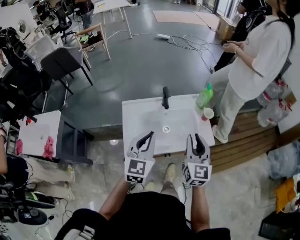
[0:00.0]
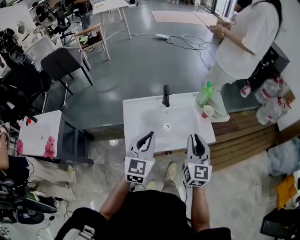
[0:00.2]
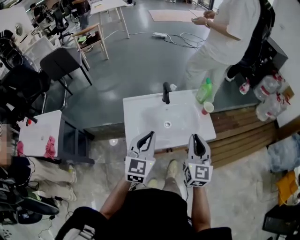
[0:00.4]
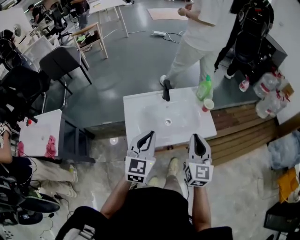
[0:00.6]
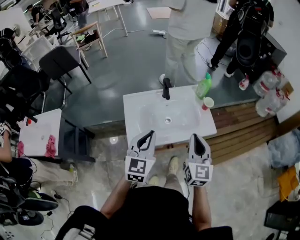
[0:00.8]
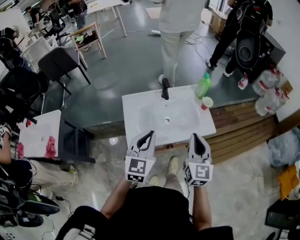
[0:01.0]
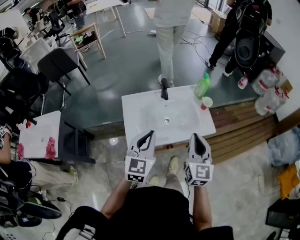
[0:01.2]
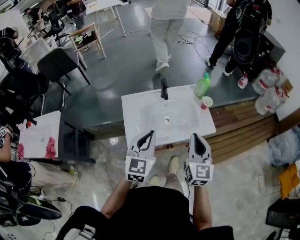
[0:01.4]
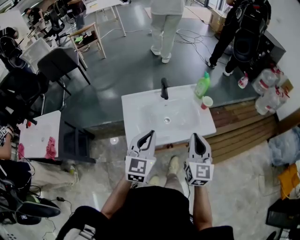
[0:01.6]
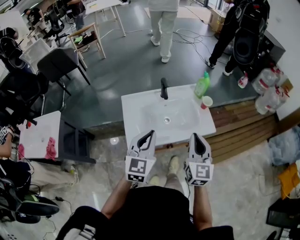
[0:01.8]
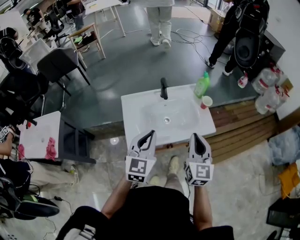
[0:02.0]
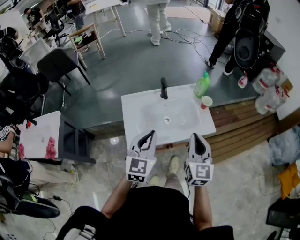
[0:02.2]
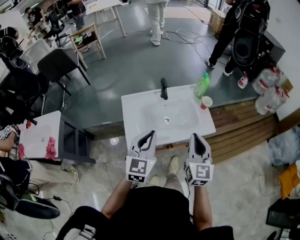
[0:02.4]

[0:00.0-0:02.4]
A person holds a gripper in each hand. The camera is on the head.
0:00.0 to 0:01.2: The right gripper is displaced backward by roughly 5 cm.
0:01.2 to 0:02.4: Both grippers stay put.

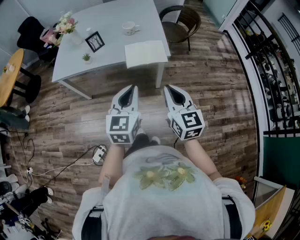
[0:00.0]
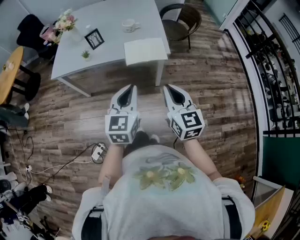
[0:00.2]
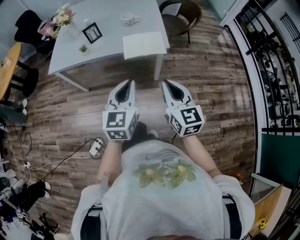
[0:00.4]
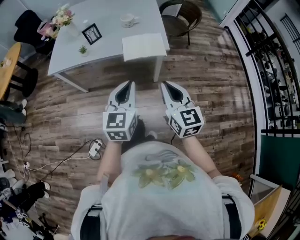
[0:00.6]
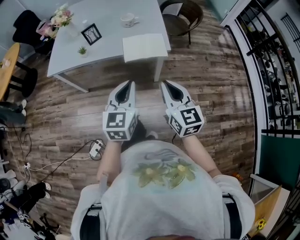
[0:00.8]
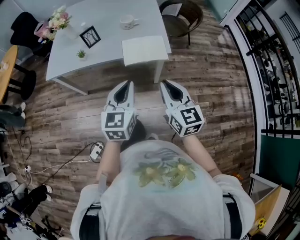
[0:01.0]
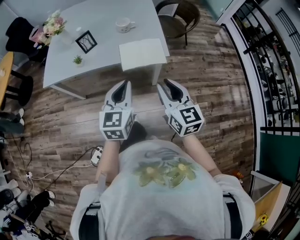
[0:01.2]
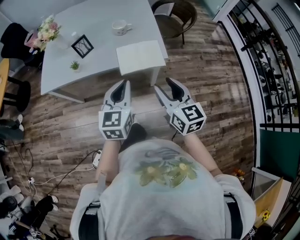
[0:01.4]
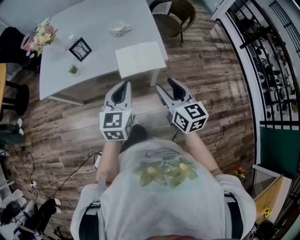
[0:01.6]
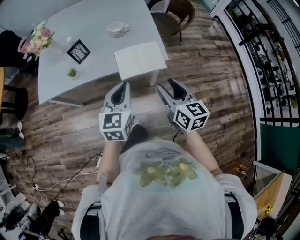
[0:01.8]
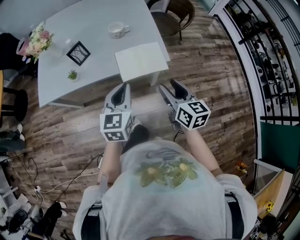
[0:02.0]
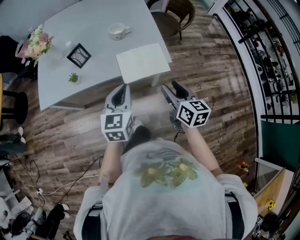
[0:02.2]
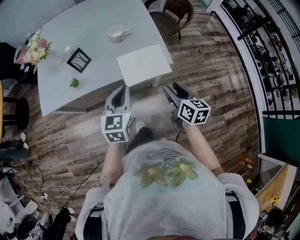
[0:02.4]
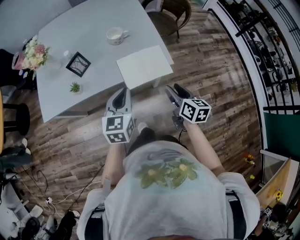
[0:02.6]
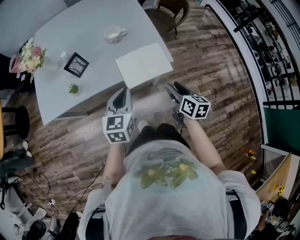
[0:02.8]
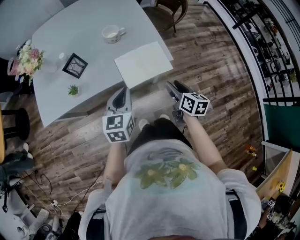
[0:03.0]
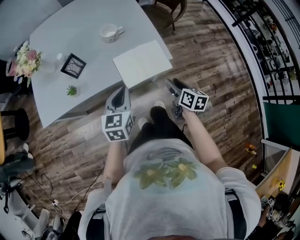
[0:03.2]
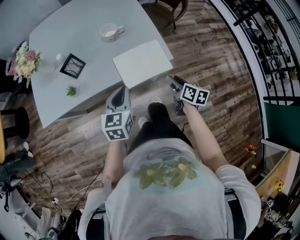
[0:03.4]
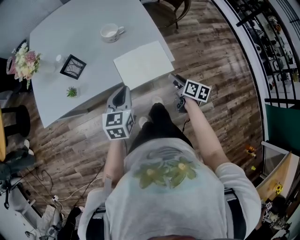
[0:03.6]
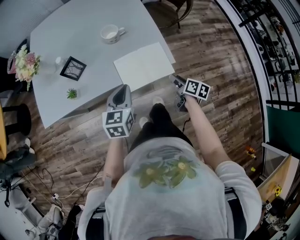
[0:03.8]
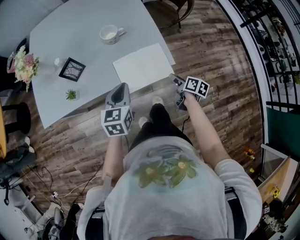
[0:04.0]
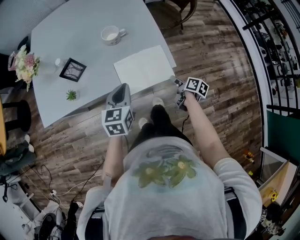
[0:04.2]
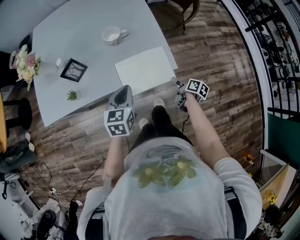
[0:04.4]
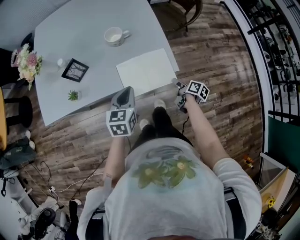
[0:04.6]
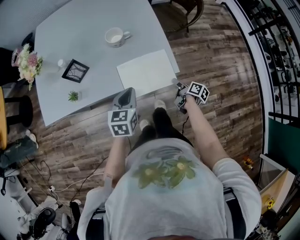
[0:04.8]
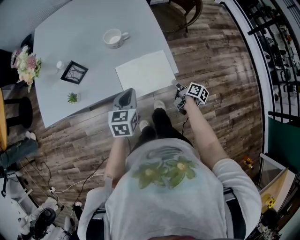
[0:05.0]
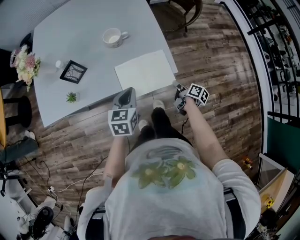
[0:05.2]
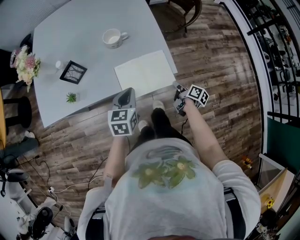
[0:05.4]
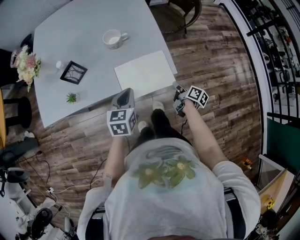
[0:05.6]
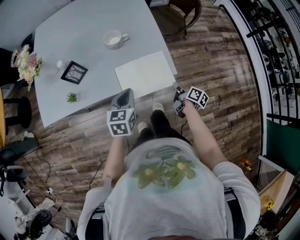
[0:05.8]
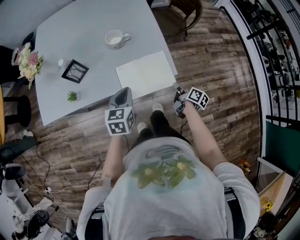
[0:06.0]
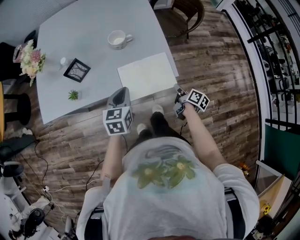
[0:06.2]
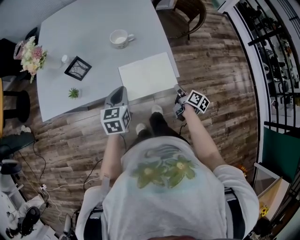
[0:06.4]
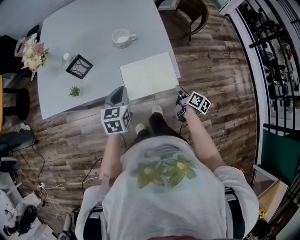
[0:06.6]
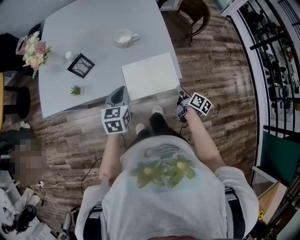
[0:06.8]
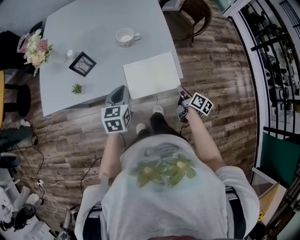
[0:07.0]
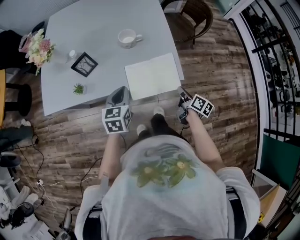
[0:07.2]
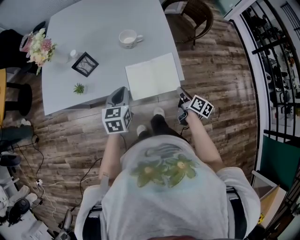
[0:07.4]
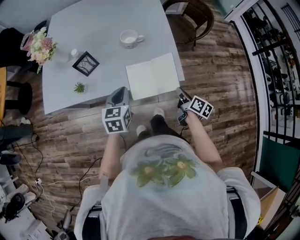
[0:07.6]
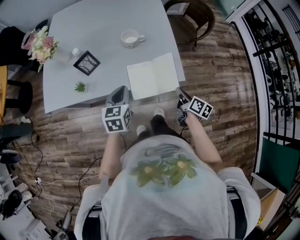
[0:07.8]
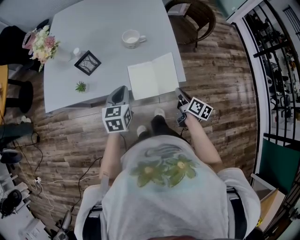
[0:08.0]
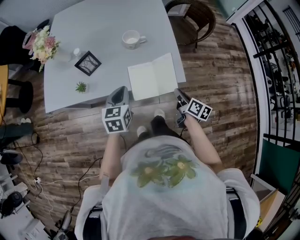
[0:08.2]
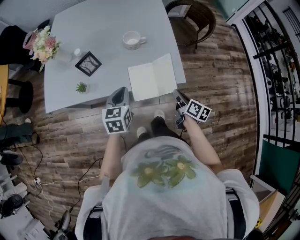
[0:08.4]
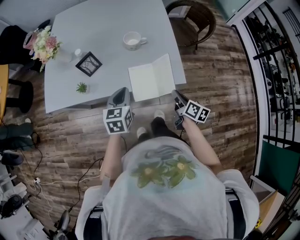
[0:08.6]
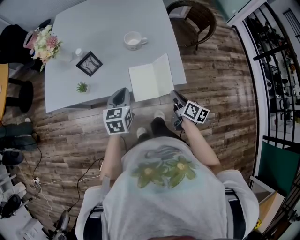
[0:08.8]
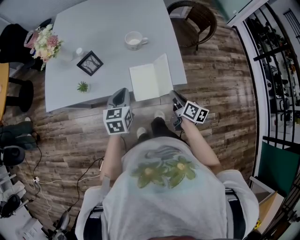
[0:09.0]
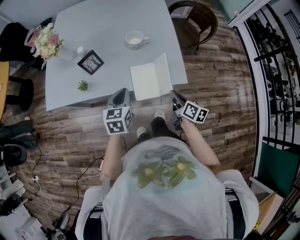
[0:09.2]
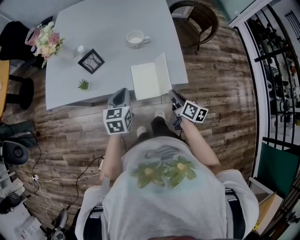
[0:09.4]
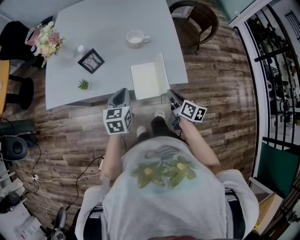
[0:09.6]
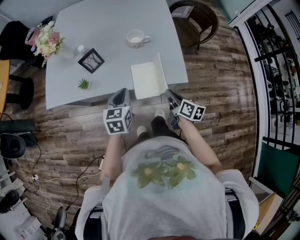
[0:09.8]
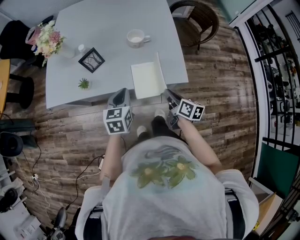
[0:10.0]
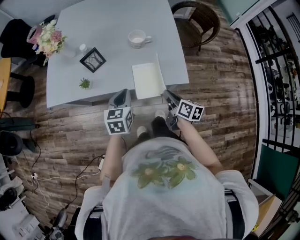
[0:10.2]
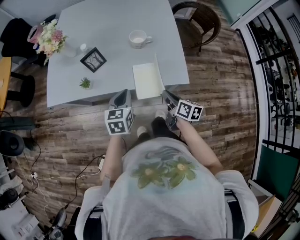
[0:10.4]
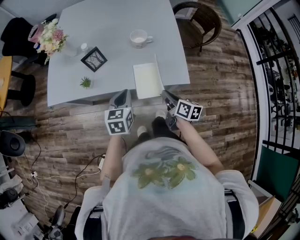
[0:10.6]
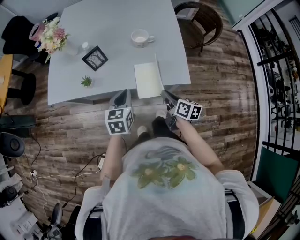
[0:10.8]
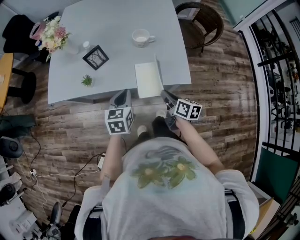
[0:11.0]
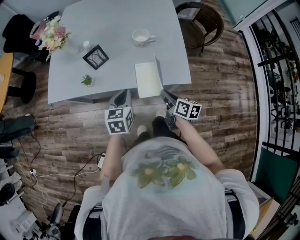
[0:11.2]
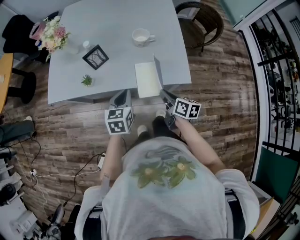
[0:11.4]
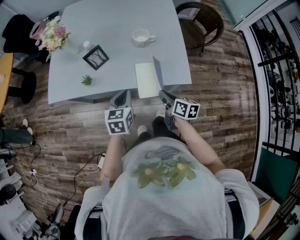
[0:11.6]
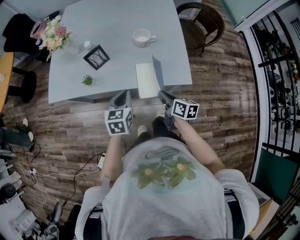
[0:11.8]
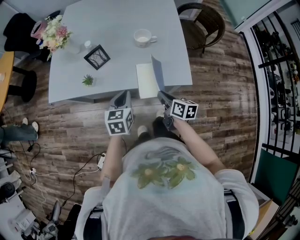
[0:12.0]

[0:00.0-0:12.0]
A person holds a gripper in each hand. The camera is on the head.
0:00.0 to 0:01.6: Both grippers travel together forward, roughly 15 cm. The right gripper opens its fingers.
0:01.6 to 0:03.0: The left gripper travels forward, downward and to the left by approximately 15 cm, while the right gripper shifts about 15 cm downward and forward, and swivels some 30 degrees.
0:03.0 to 0:04.4: The left gripper shifts some 10 cm forward. The right gripper shifts about 20 cm downward, forward and to the right, and rotates approximately 40 degrees.
0:04.4 to 0:06.0: The right gripper closes up.
0:06.0 to 0:07.6: The right gripper goes approximately 5 cm upward. Meanwhile the left gripper heads to the left, covering roughly 5 cm.
0:07.6 to 0:09.0: The right gripper moves to the left, about 5 cm.
0:09.0 to 0:10.4: The right gripper is displaced to the left by some 5 cm.
0:10.4 to 0:12.0: There are only small adjustments of the grippers.

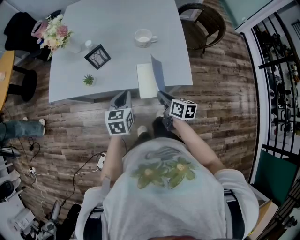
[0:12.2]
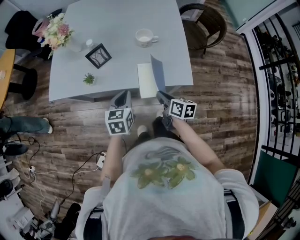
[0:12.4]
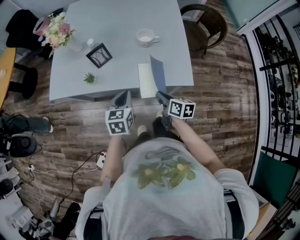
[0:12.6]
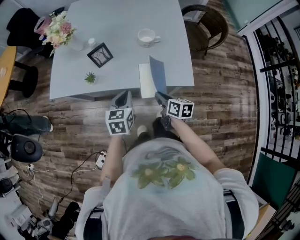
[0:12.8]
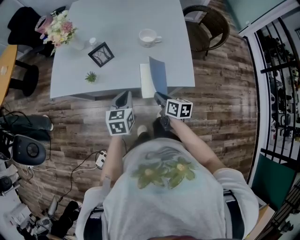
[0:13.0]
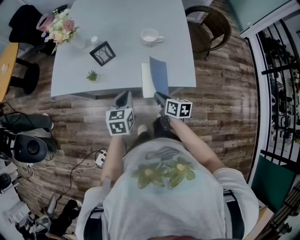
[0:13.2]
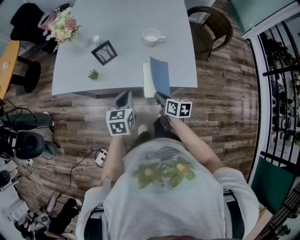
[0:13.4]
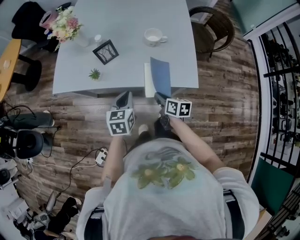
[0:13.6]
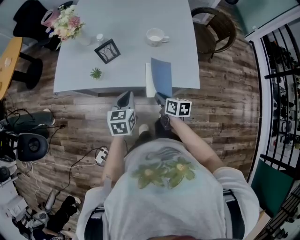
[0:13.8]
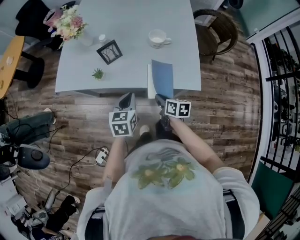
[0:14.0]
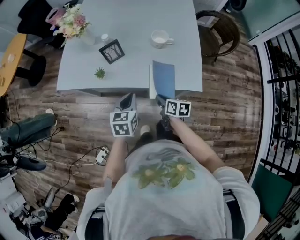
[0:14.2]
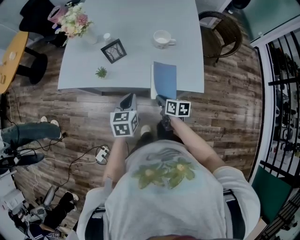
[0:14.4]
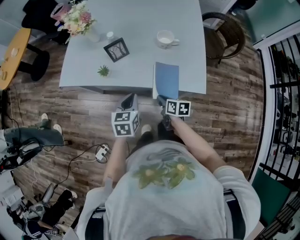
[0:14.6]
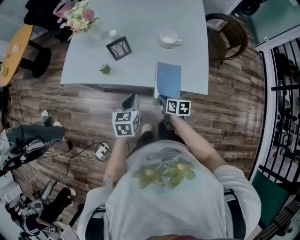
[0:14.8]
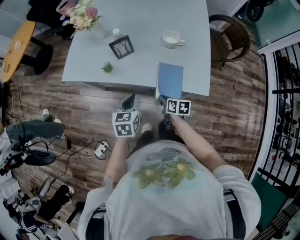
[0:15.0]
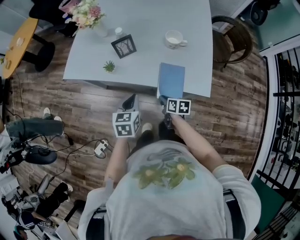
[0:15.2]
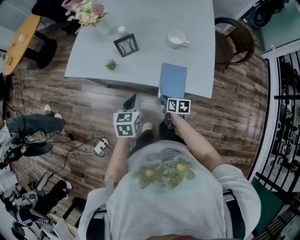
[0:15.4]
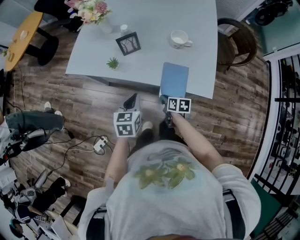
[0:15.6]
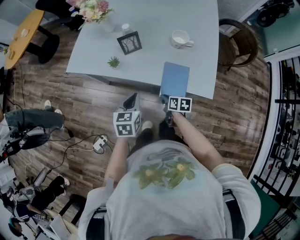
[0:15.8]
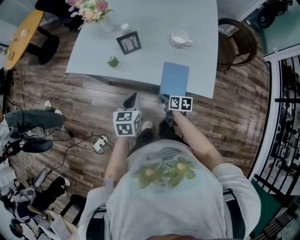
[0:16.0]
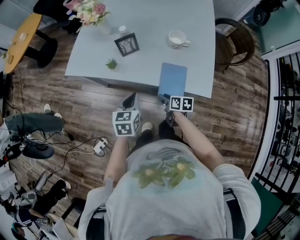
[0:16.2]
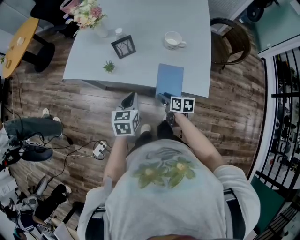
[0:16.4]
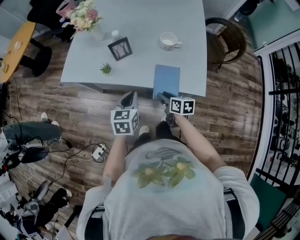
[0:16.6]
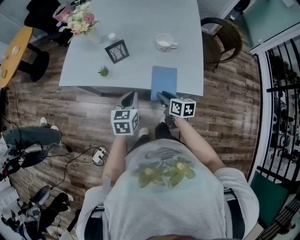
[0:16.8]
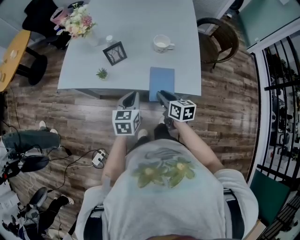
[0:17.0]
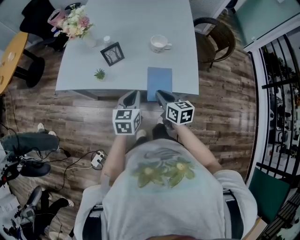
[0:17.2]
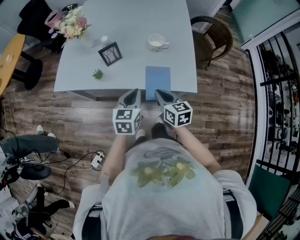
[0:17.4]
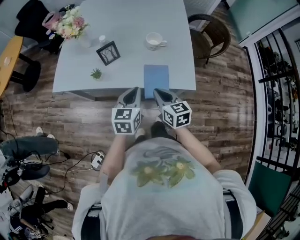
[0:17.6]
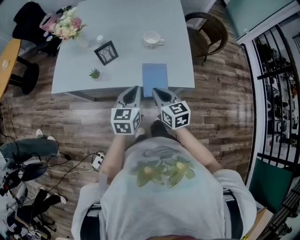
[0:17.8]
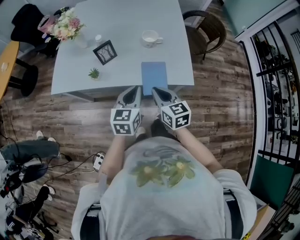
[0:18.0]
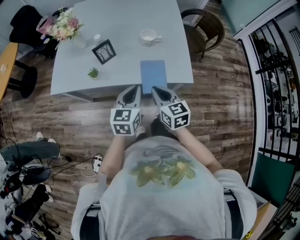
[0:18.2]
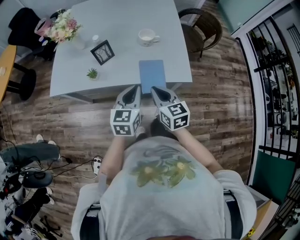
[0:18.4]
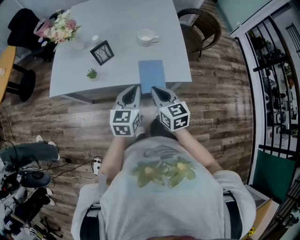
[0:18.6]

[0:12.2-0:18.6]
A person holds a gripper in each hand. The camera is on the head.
0:12.2 to 0:13.8: The right gripper ends up about 5 cm from where it was.
0:13.8 to 0:15.4: The right gripper moves downward, roughly 5 cm.
0:15.4 to 0:17.0: The right gripper goes roughly 15 cm upward, and rotates some 20 degrees, while the left gripper shifts by roughly 5 cm.
0:17.0 to 0:18.6: The left gripper heads upward, covering about 5 cm. The right gripper shifts approximately 10 cm upward and backward, and rotates roughly 20 degrees.

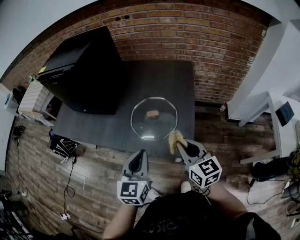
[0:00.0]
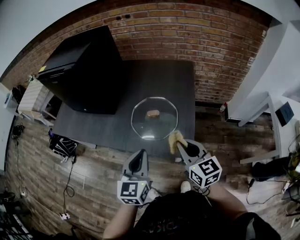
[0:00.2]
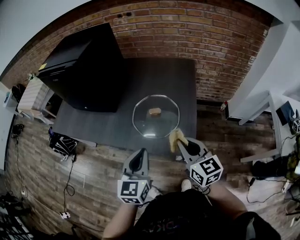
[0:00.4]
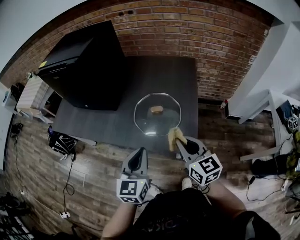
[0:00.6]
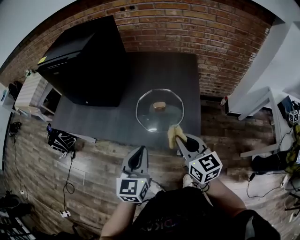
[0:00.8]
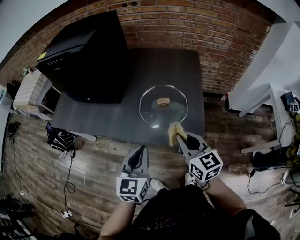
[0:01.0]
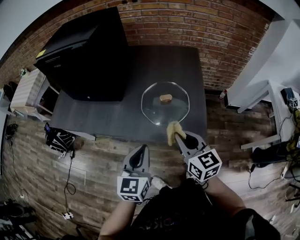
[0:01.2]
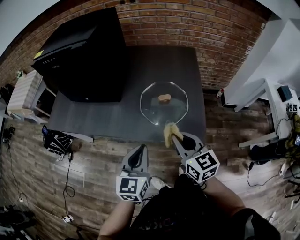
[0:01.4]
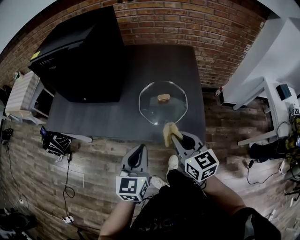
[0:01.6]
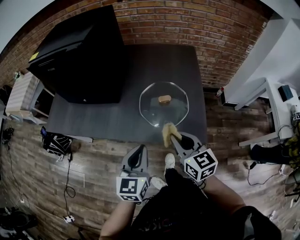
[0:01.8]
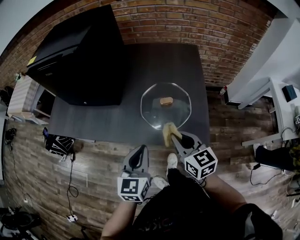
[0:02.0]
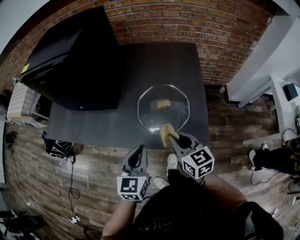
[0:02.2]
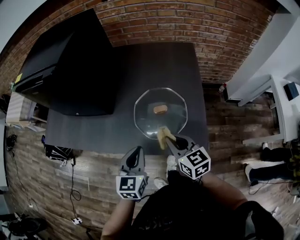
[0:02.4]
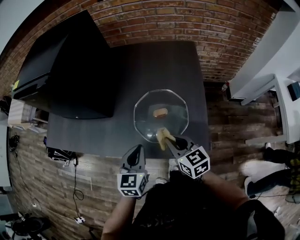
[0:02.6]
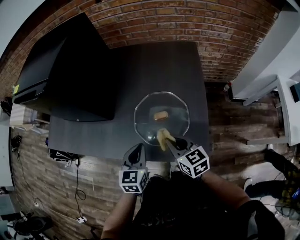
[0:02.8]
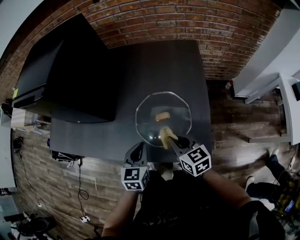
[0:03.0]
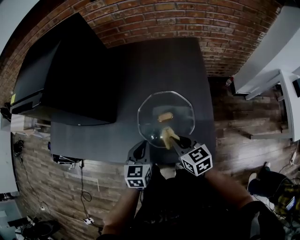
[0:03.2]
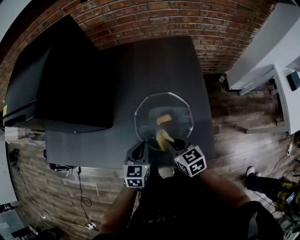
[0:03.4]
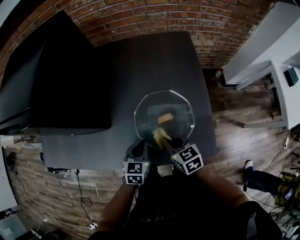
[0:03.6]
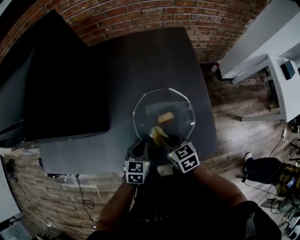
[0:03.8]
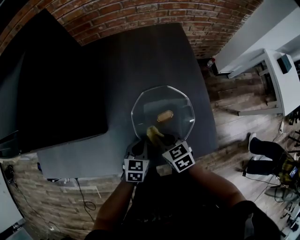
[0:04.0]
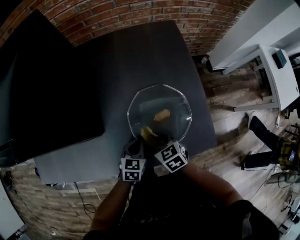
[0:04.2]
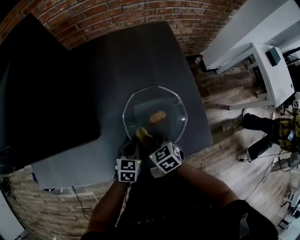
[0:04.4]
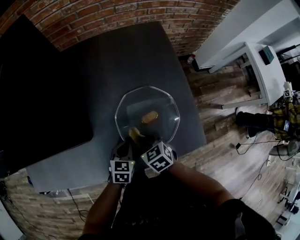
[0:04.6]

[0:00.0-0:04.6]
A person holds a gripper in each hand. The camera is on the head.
0:00.0 to 0:01.6: Both grippers travel together to the left, some 15 cm.
0:01.6 to 0:03.0: Both grippers travel together forward and downward, roughly 20 cm.
0:03.0 to 0:04.6: The right gripper shifts about 15 cm downward, to the left and forward, and turns by approximately 30 degrees. The left gripper moves downward and forward, approximately 15 cm, and changes its angle by roughly 30 degrees.
